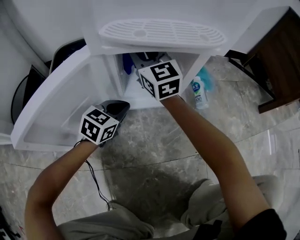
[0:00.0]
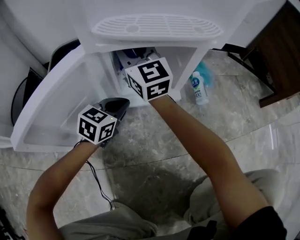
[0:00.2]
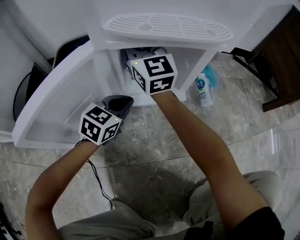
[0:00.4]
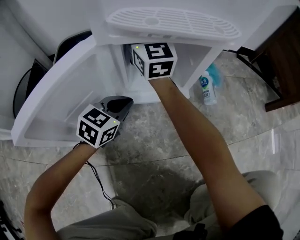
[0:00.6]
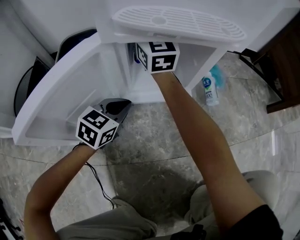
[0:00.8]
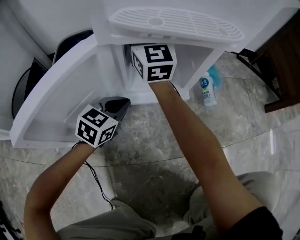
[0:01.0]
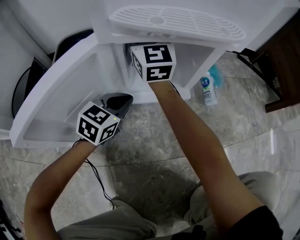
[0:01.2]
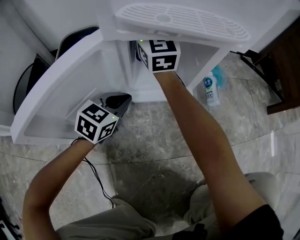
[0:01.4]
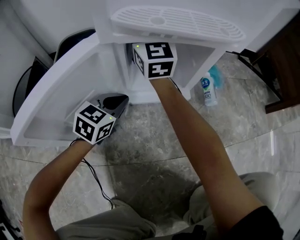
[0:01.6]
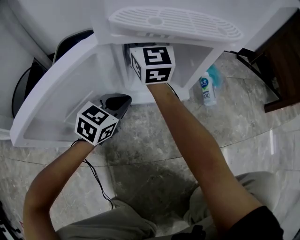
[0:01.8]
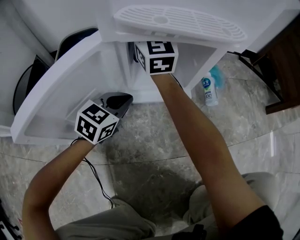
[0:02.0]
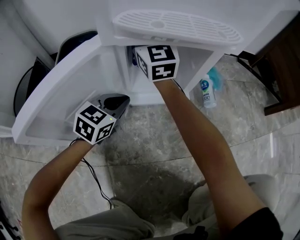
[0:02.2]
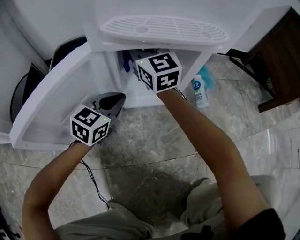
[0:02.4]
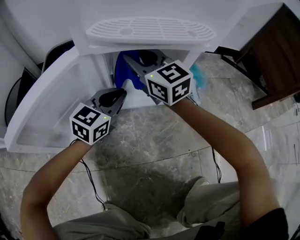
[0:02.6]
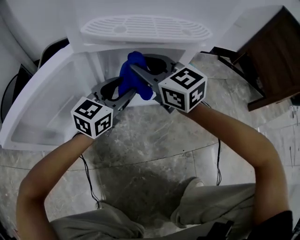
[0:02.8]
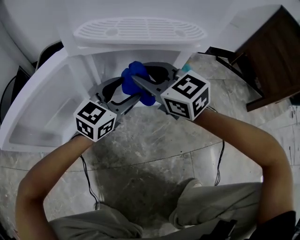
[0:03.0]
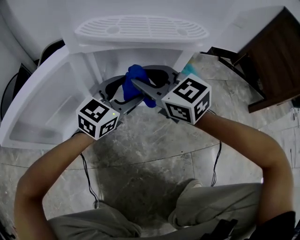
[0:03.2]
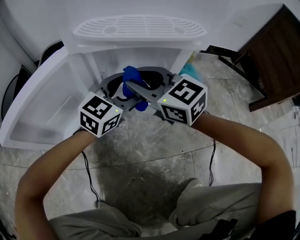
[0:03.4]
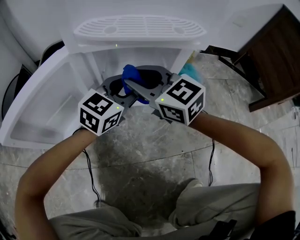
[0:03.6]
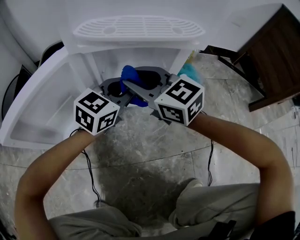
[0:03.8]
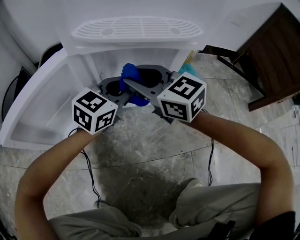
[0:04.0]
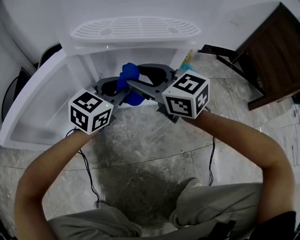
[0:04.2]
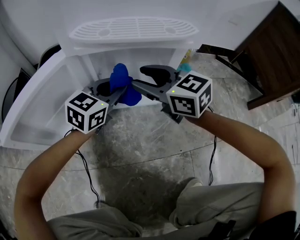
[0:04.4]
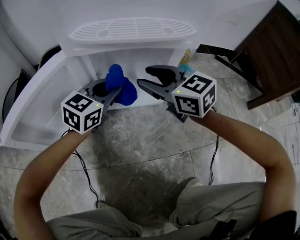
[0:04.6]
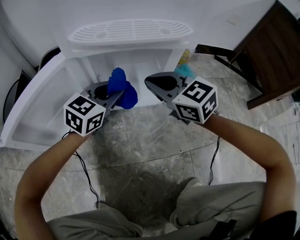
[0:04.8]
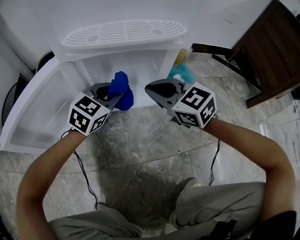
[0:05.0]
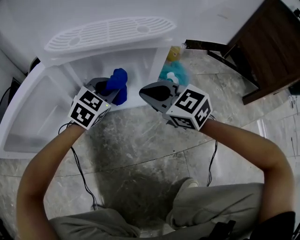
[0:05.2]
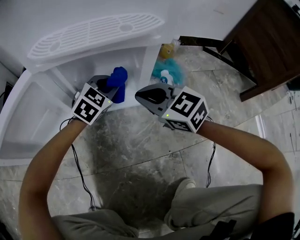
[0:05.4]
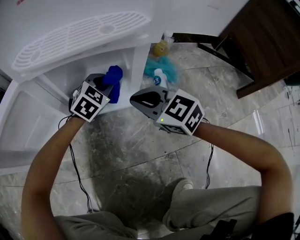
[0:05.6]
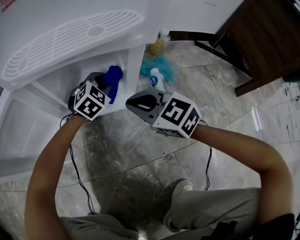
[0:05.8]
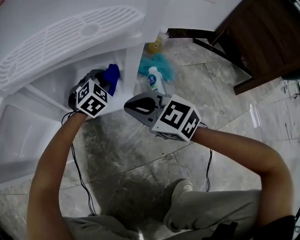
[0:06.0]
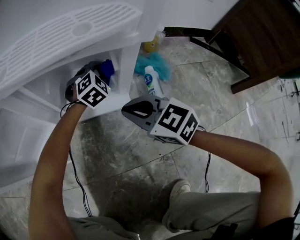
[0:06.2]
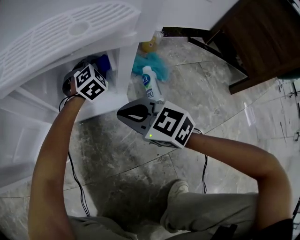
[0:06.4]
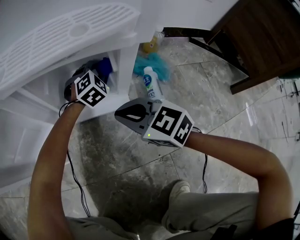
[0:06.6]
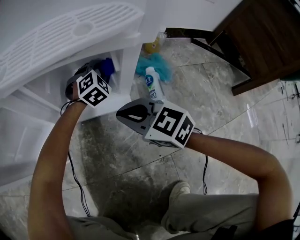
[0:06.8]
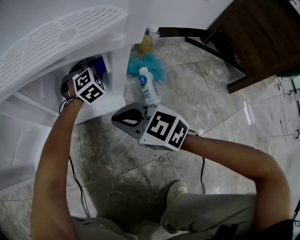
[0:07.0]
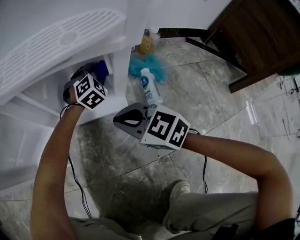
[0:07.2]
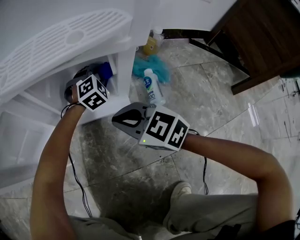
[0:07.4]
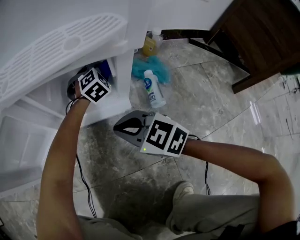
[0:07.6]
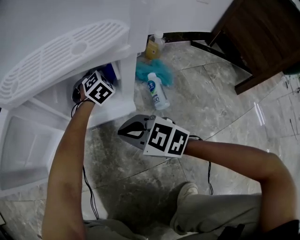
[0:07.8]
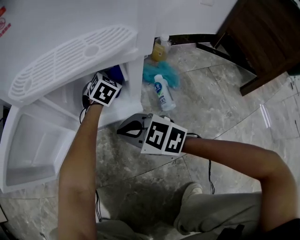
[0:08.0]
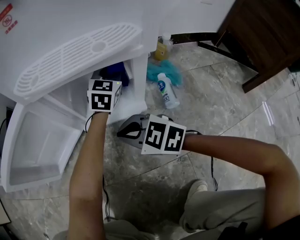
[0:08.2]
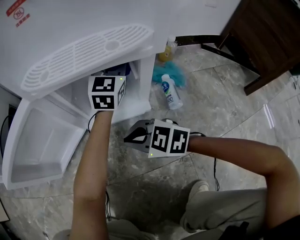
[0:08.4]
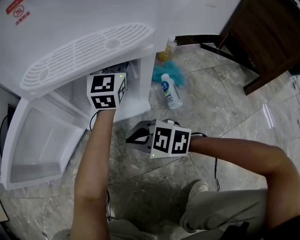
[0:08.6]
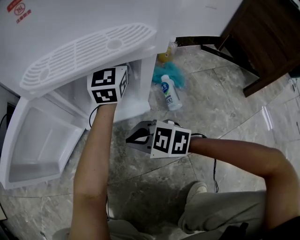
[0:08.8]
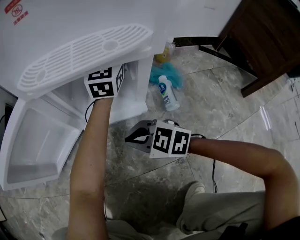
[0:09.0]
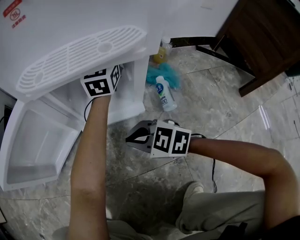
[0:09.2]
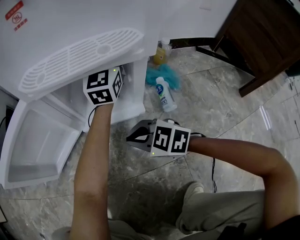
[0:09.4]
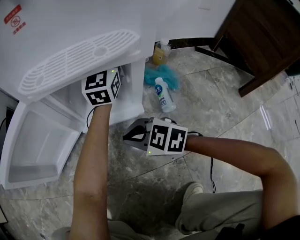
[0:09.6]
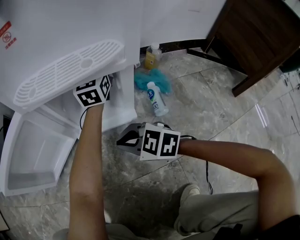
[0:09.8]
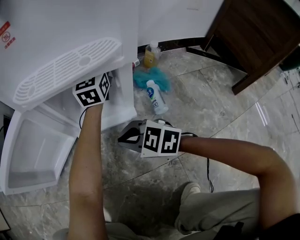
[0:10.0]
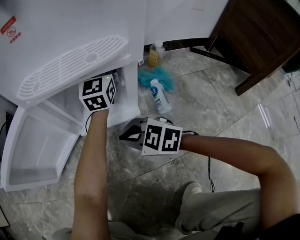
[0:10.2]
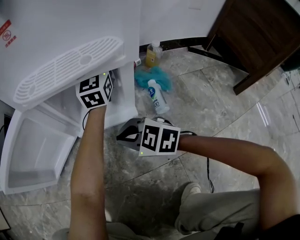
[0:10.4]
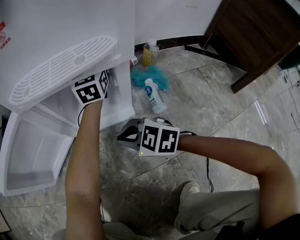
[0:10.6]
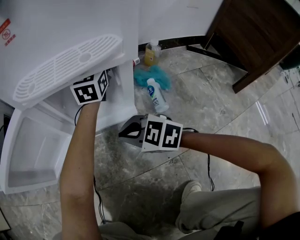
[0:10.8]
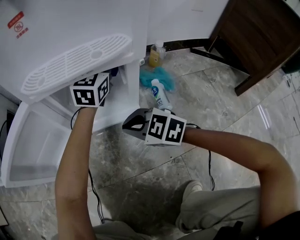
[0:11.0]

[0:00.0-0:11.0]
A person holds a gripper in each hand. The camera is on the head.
0:00.0 to 0:01.6: The right gripper changes place by approximately 5 cm.
0:01.6 to 0:03.2: The left gripper travels to the right and upward by some 15 cm, turns by about 20 degrees, and opens up; the right gripper shifts some 15 cm backward and to the right, and swivels about 40 degrees.
0:03.2 to 0:04.8: The left gripper closes its fingers; the right gripper travels to the right by approximately 5 cm, and closes its fingers.
0:04.8 to 0:06.2: The right gripper travels downward and to the right by approximately 10 cm, while the left gripper heads forward, downward and to the right, covering about 25 cm, and swivels about 40 degrees.
0:06.2 to 0:07.8: The right gripper moves to the left, some 5 cm.
0:07.8 to 0:09.4: The left gripper travels upward by roughly 25 cm, and points its fingers roughly 50 degrees further upward.
0:09.4 to 0:11.0: There are only small adjustments of the grippers.

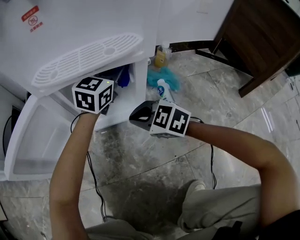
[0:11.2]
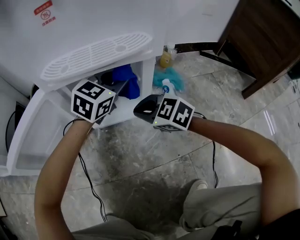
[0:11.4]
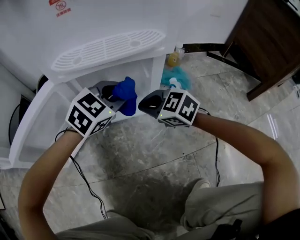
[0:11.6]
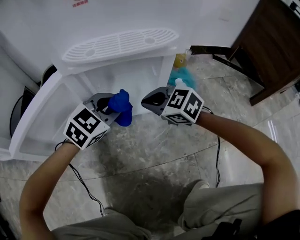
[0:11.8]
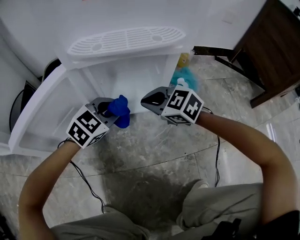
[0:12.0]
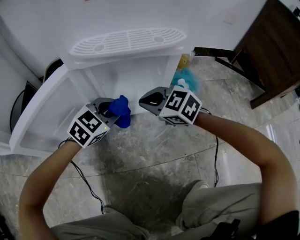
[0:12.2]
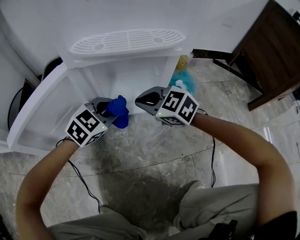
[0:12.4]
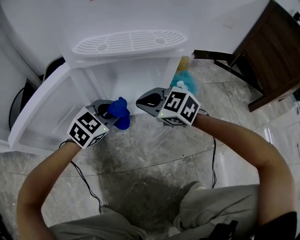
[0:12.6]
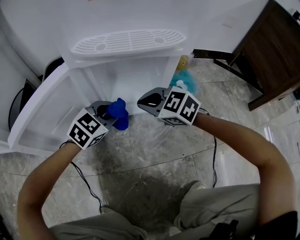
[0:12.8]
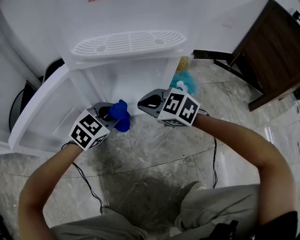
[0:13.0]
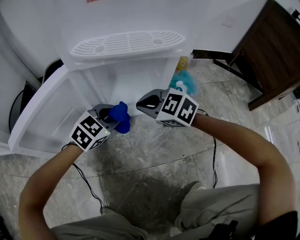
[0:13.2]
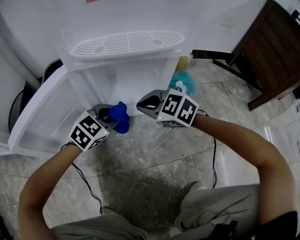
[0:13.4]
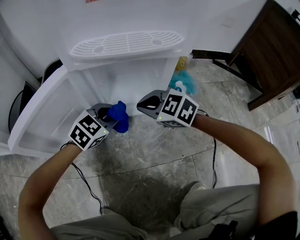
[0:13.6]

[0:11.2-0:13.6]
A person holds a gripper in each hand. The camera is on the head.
0:11.2 to 0:12.4: The left gripper moves backward, to the left and downward, approximately 20 cm, and changes its angle by about 30 degrees. Meanwhile the right gripper moves about 5 cm.
0:12.4 to 0:13.6: The grippers move only a little.

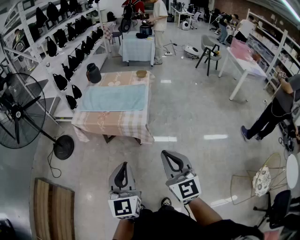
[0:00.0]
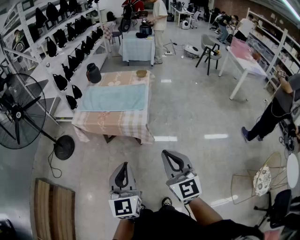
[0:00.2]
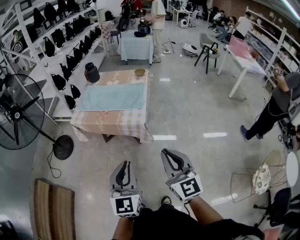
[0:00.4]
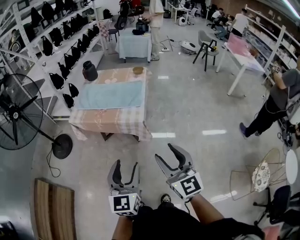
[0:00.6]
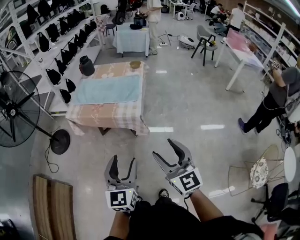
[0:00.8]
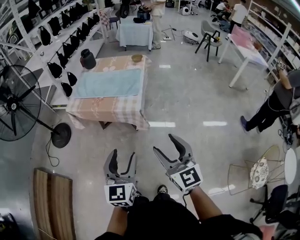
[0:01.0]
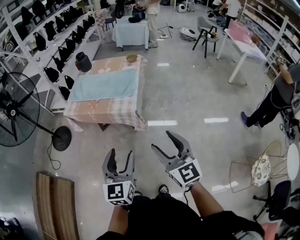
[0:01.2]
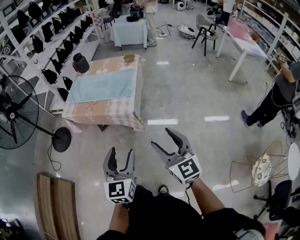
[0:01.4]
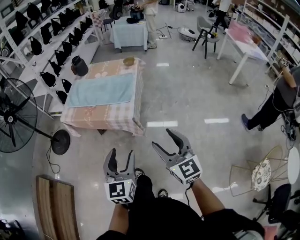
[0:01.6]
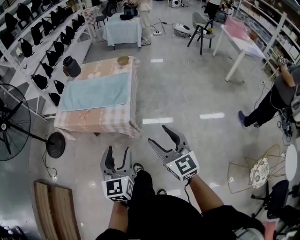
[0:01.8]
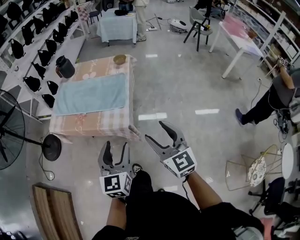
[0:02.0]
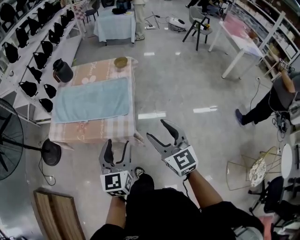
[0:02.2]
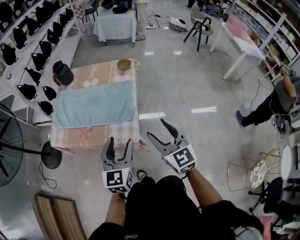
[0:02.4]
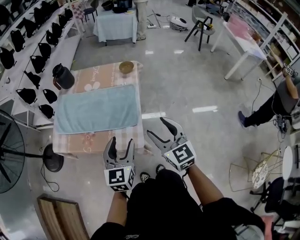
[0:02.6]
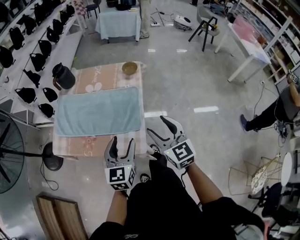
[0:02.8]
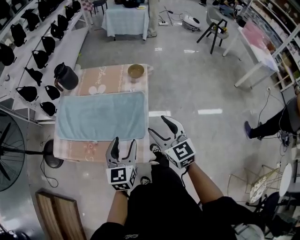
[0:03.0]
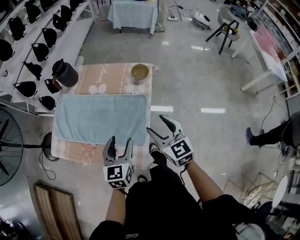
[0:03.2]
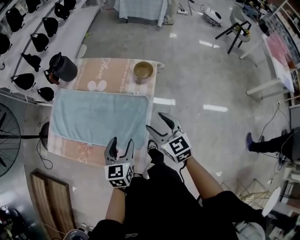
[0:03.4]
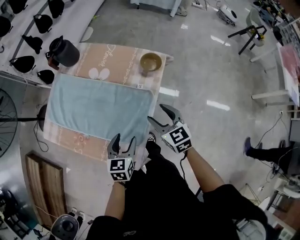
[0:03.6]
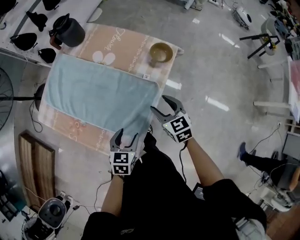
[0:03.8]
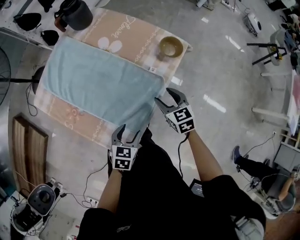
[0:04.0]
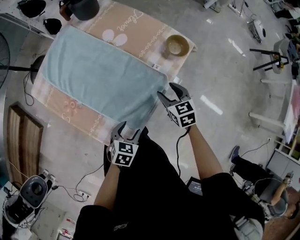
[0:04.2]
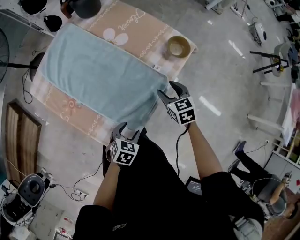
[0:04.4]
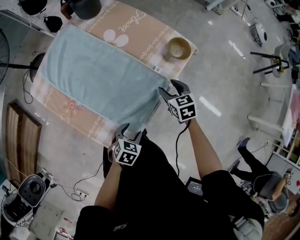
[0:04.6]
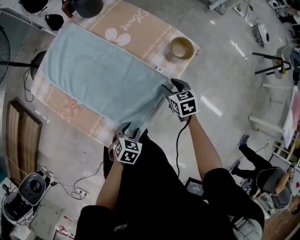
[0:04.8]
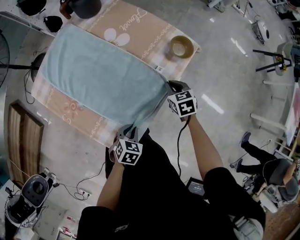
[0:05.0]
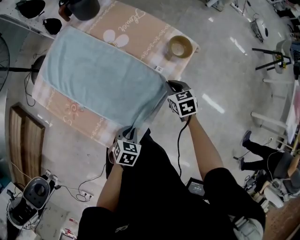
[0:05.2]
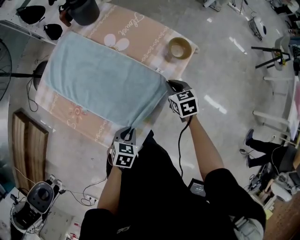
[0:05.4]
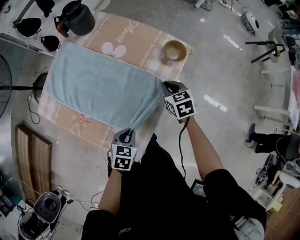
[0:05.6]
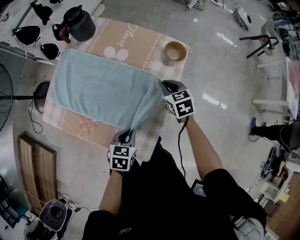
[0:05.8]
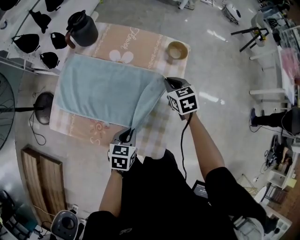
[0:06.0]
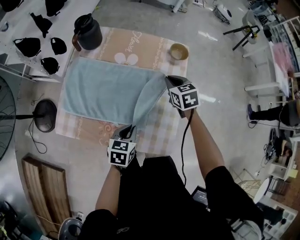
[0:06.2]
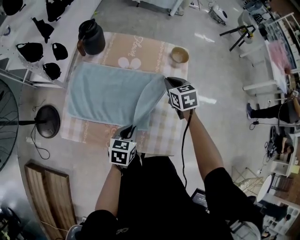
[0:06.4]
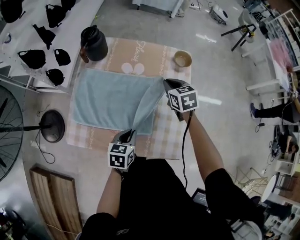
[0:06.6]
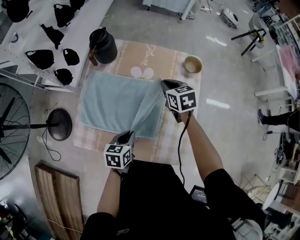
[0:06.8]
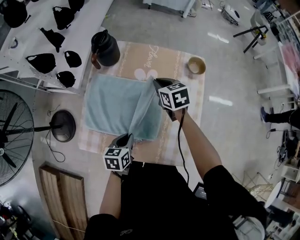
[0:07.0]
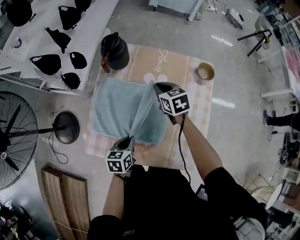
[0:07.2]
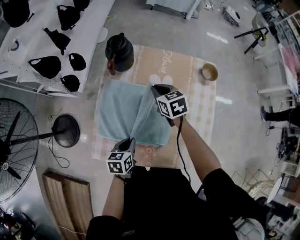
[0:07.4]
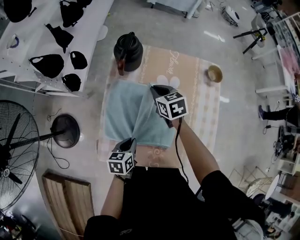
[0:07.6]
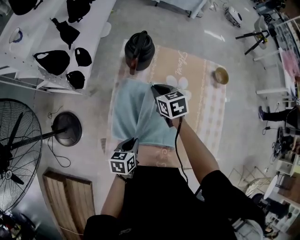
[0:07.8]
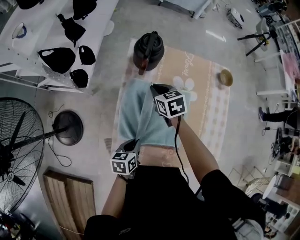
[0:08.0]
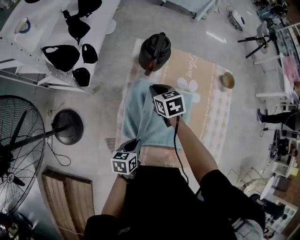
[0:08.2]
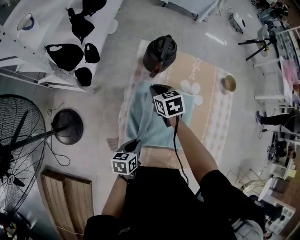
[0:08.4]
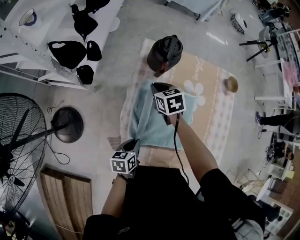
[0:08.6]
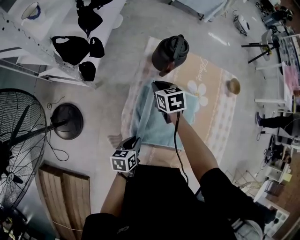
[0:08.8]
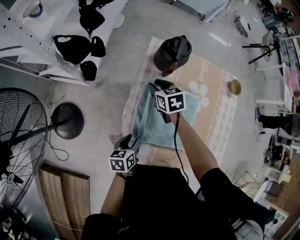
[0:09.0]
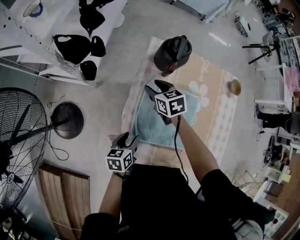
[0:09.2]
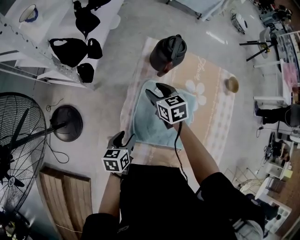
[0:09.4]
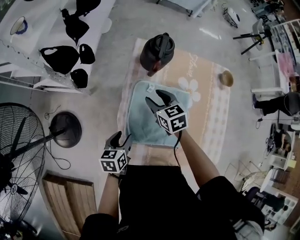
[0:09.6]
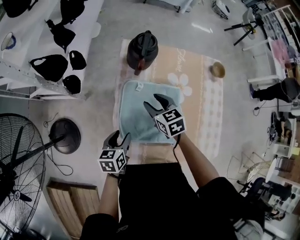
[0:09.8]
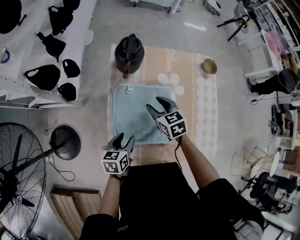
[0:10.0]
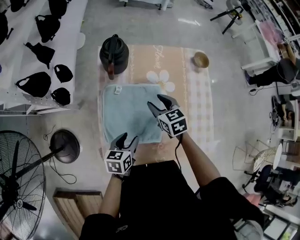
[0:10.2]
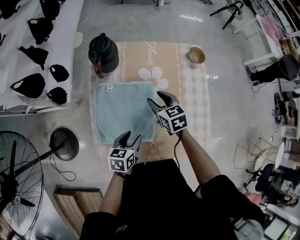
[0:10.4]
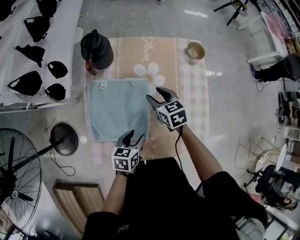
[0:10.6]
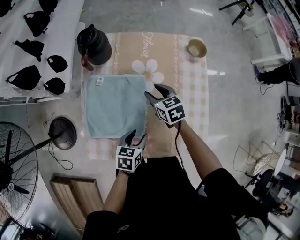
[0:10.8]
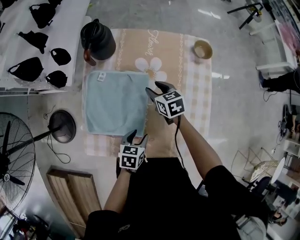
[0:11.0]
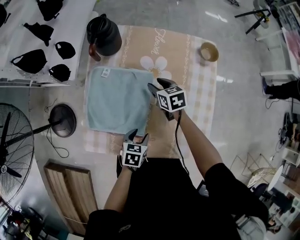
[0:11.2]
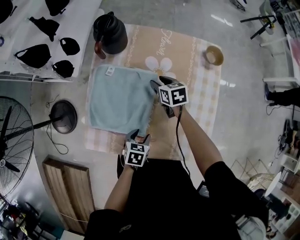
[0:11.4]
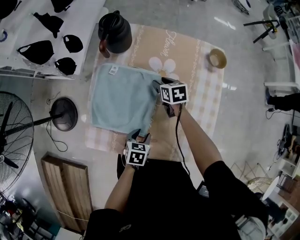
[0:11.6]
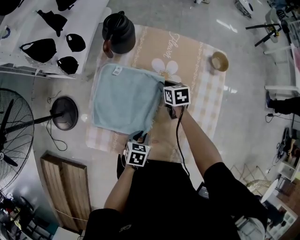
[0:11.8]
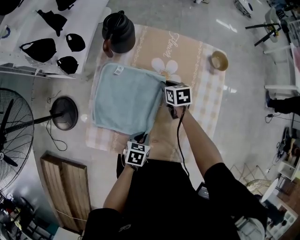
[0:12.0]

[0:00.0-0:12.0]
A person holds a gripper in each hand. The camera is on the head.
0:00.0 to 0:01.6: Both grippers move to the right, forward and downward, roughly 15 cm. The left gripper opens, while the right gripper opens.
0:01.6 to 0:03.0: Both grippers are carried forward, roughly 50 cm.
0:03.0 to 0:04.4: The right gripper is displaced downward and forward by some 35 cm, and points its fingers about 30 degrees further downward. Meanwhile the left gripper moves downward, about 25 cm, and angles its fingers downward, by about 40 degrees.
0:04.4 to 0:06.0: The left gripper travels to the left and upward by roughly 20 cm, and closes up. The right gripper moves to the left and upward, some 10 cm, changes its angle by approximately 20 degrees, and closes up.
0:06.0 to 0:07.6: Both grippers travel together to the left, about 35 cm.
0:07.6 to 0:09.0: The two grippers go roughly 15 cm to the left. The left gripper opens its fingers; the right gripper opens up.
0:09.0 to 0:10.4: The two grippers go some 25 cm to the right. The left gripper swivels about 20 degrees.
0:10.4 to 0:12.0: The right gripper is displaced downward and forward by roughly 15 cm, and closes up. Meanwhile the left gripper moves to the right and downward, some 10 cm, and closes up.
